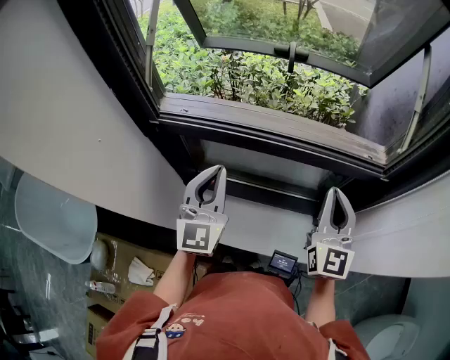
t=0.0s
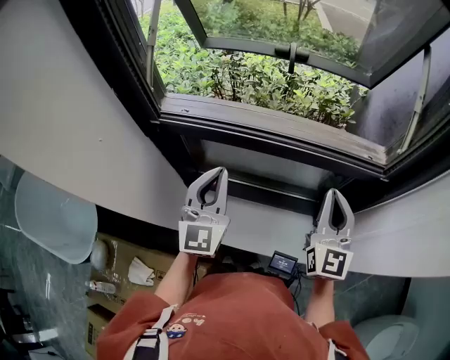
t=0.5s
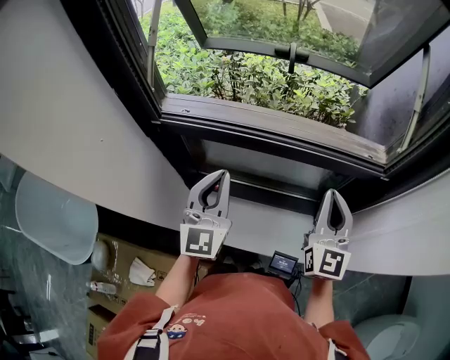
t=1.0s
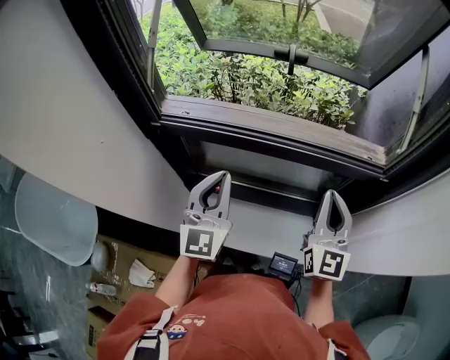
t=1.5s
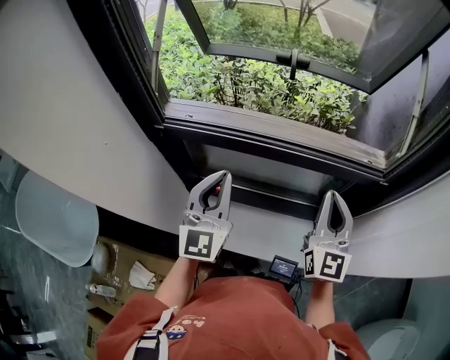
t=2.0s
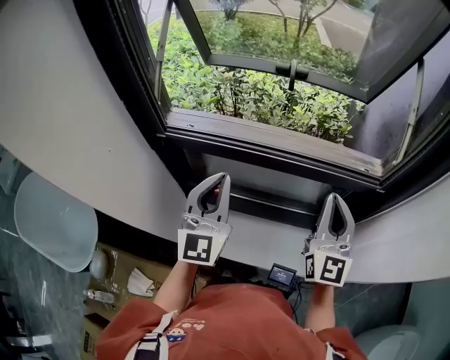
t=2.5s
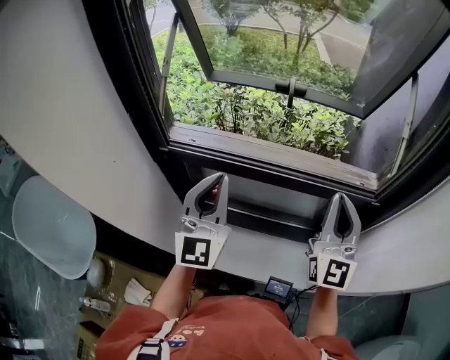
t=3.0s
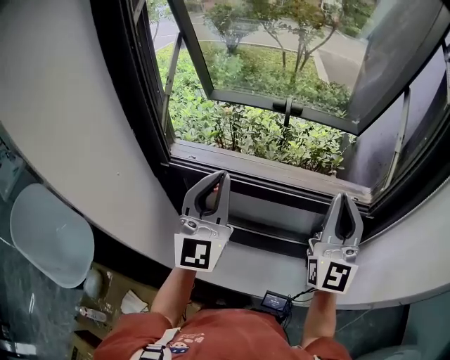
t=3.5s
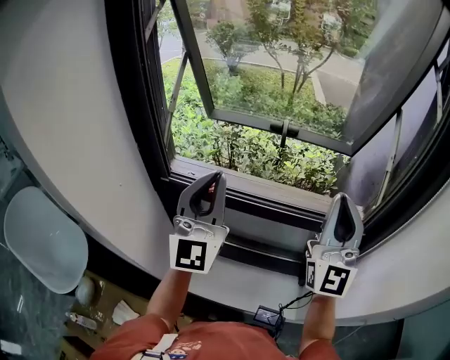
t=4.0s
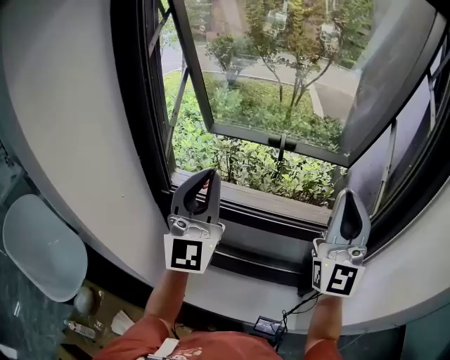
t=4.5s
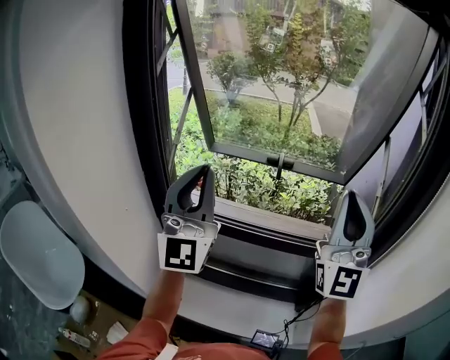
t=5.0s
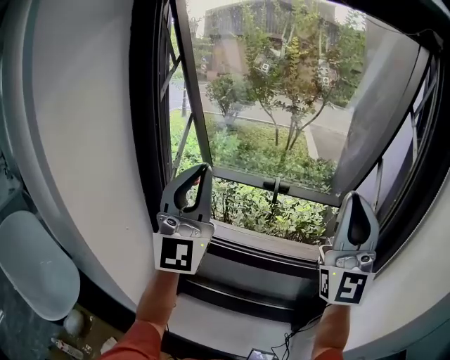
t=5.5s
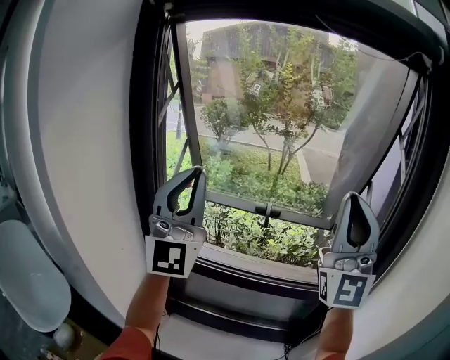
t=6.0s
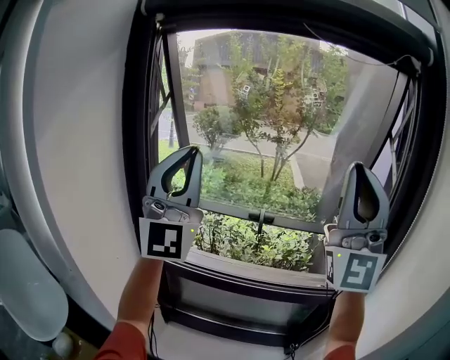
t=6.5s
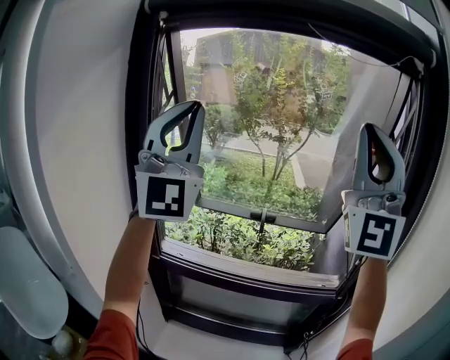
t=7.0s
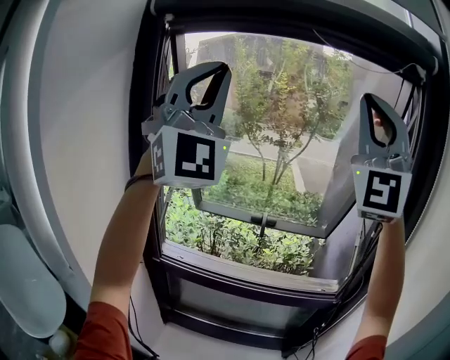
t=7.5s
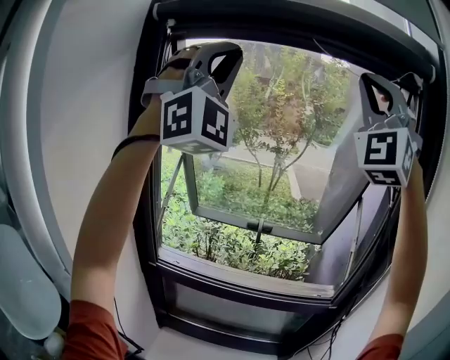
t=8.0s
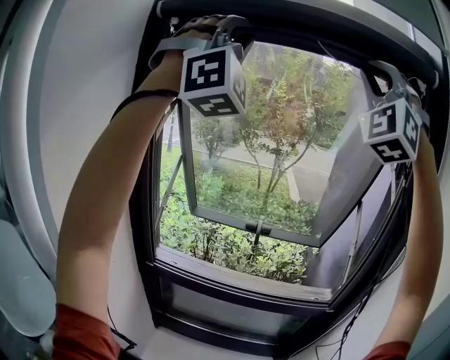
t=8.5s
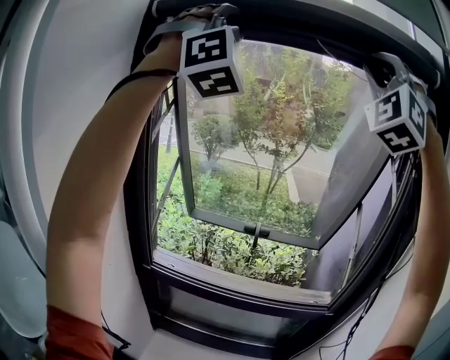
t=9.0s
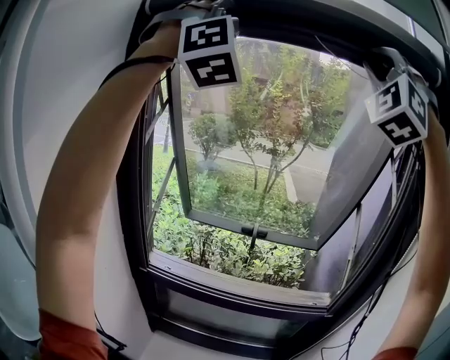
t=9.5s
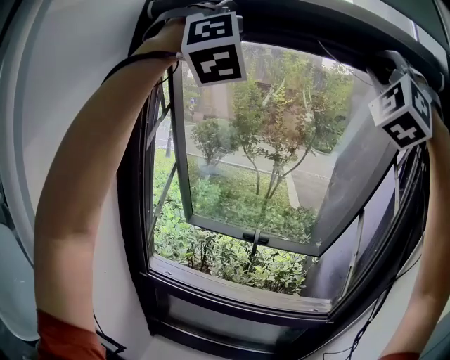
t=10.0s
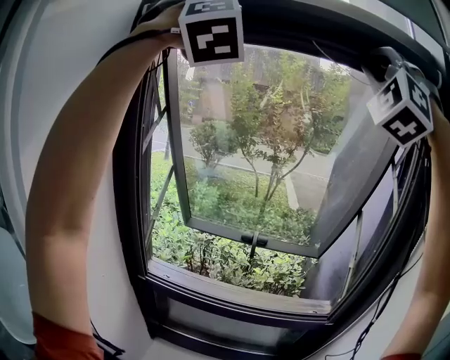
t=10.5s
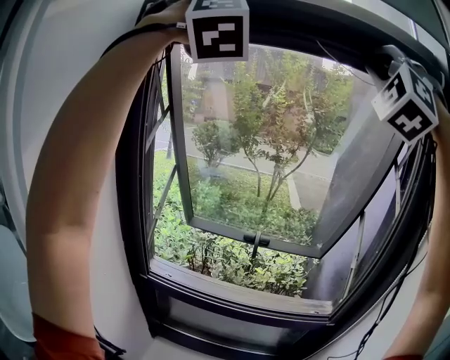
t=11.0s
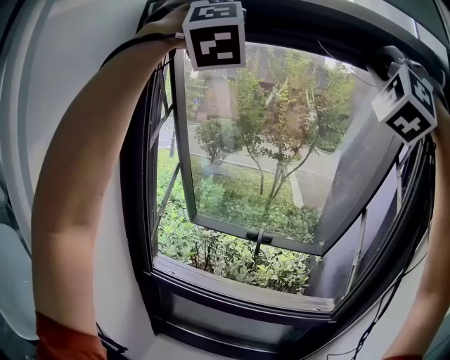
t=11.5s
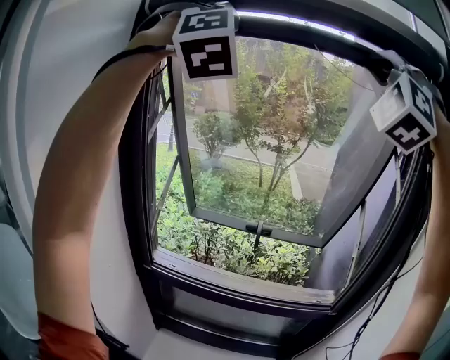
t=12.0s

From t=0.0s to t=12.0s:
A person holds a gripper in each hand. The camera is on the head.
From t=0.0s to t=2.0s: The grippers make only small movements.
From t=2.0s to t=4.0s: The grippers both shift upward by approximately 15 cm. The left gripper turns by about 20 degrees. Meanwhile the right gripper rotates about 30 degrees.
From t=4.0s to t=6.0s: Both grippers travel together upward, some 20 cm. The right gripper rotates roughly 20 degrees; the left gripper rotates roughly 20 degrees.
From t=6.0s to t=8.0s: The grippers both shift upward by approximately 25 cm. The right gripper rotates around the line of its fingers by about 50 degrees, counterclockwise from behind, while the left gripper rolls clockwise, seen from behind, by roughly 50 degrees.
From t=8.0s to t=10.0s: The left gripper travels upward and forward by approximately 10 cm, and turns by some 20 degrees. Meanwhile the right gripper goes approximately 5 cm upward, and changes its angle by about 20 degrees.
From t=10.0s to t=12.0s: The grippers move only a little.

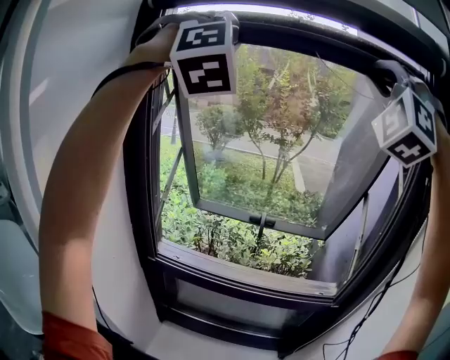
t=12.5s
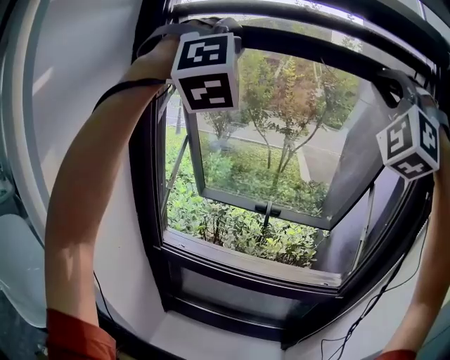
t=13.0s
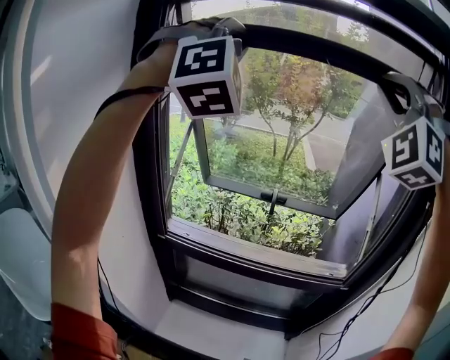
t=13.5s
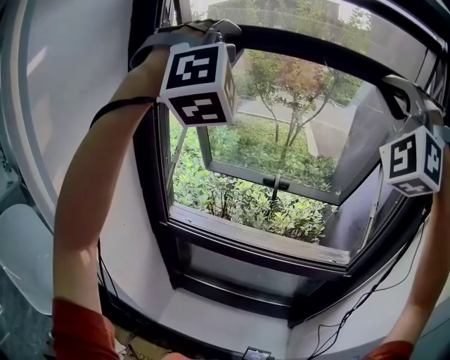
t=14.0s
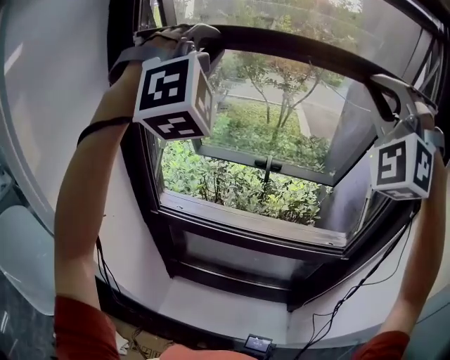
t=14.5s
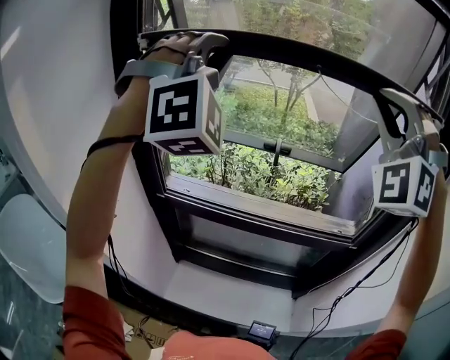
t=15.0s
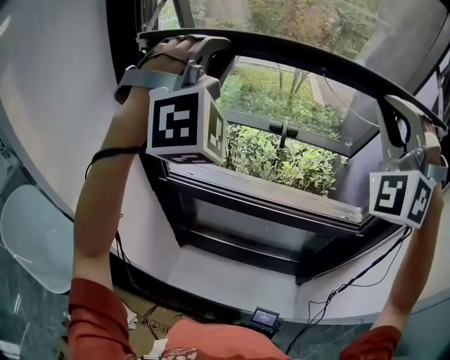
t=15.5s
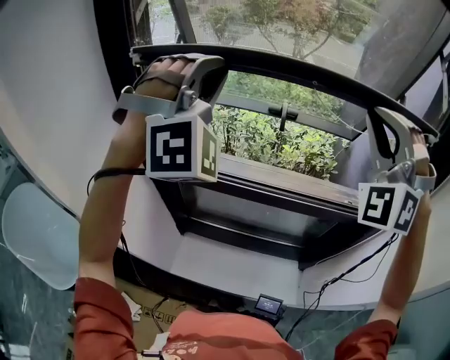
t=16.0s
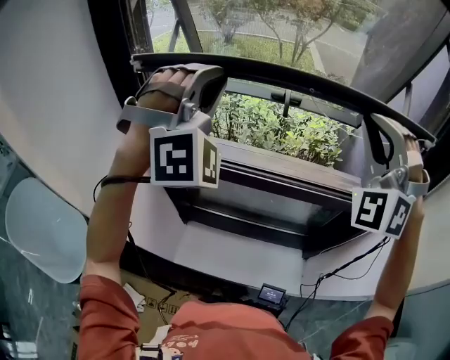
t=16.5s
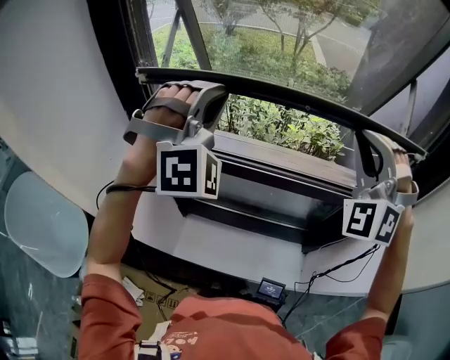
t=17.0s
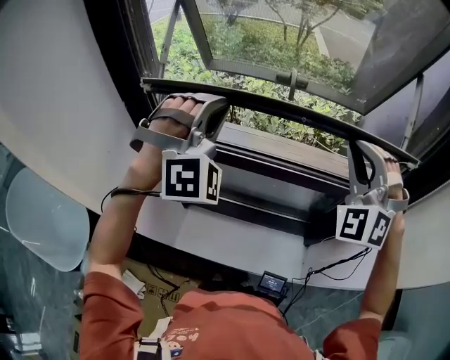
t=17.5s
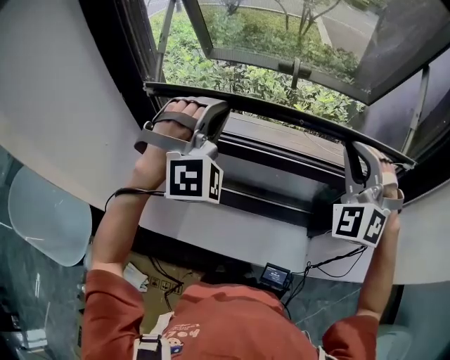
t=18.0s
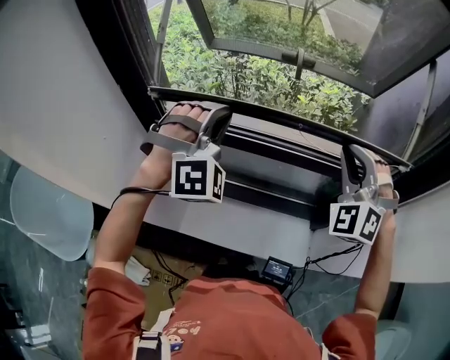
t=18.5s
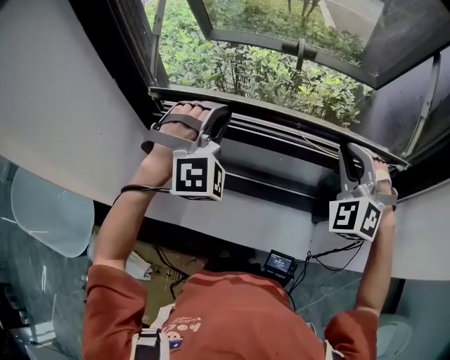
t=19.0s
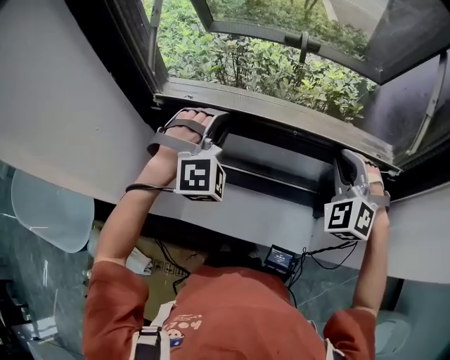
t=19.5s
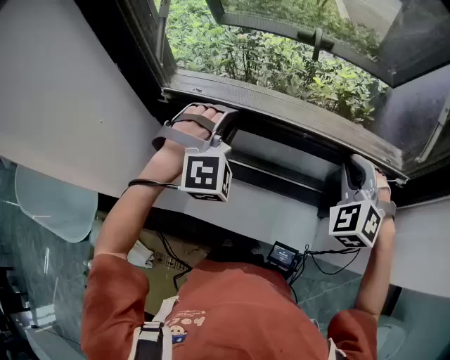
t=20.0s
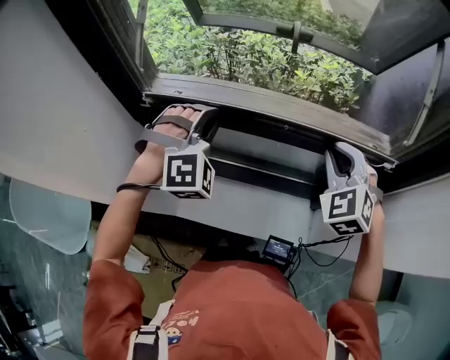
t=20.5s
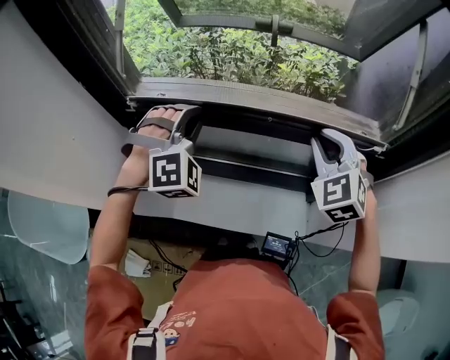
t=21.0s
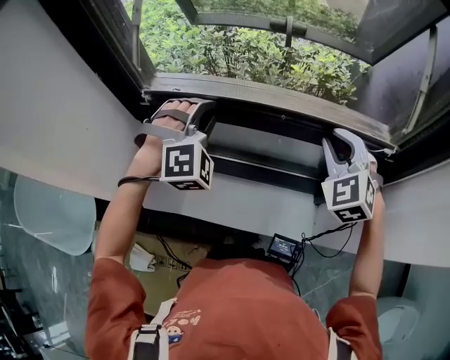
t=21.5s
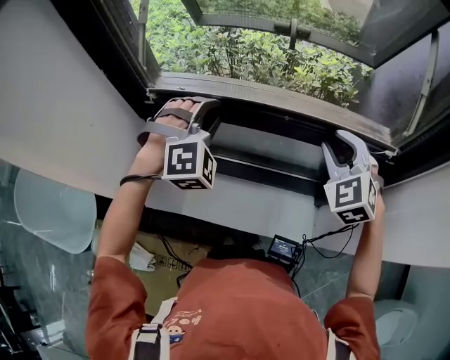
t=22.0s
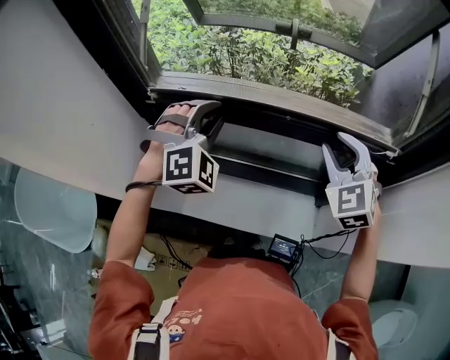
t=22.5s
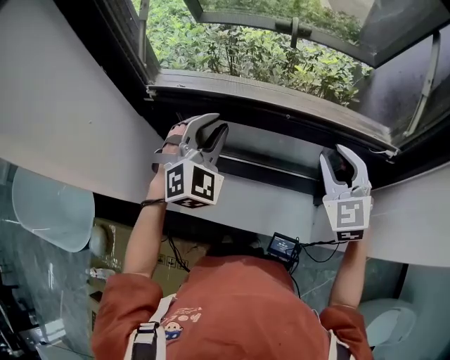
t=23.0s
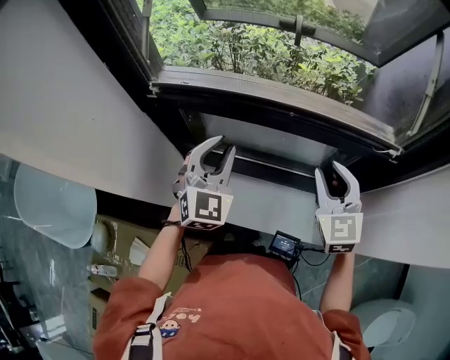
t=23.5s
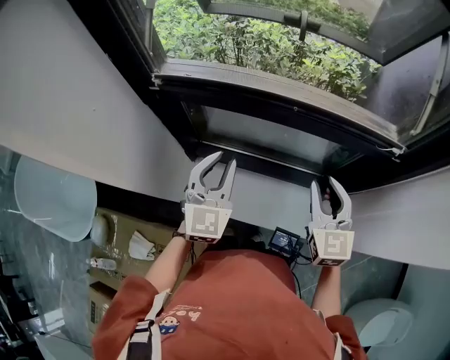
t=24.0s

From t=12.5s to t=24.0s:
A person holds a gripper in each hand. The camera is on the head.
From t=12.5s to t=14.5s: The grippers both shift downward by roughly 15 cm.
From t=14.5s to t=16.5s: Both grippers move downward, about 20 cm.
From t=16.5s to t=18.5s: Both grippers move downward, approximately 20 cm. The right gripper rotates approximately 20 degrees.
From t=18.5s to t=20.0s: The two grippers go approximately 10 cm downward.
From t=20.0s to t=22.0s: The right gripper opens.
From t=22.0s to t=24.0s: The grippers both shift backward and downward by approximately 10 cm. The right gripper swivels approximately 40 degrees, while the left gripper rolls counterclockwise, seen from behind, by some 60 degrees.

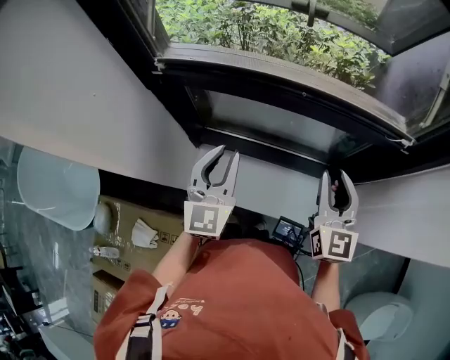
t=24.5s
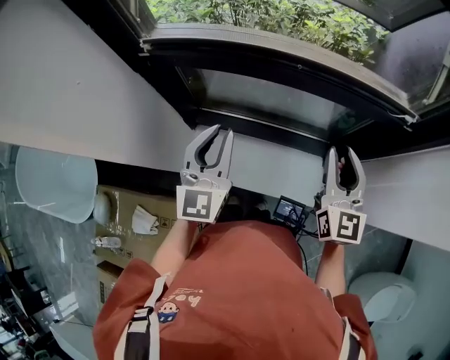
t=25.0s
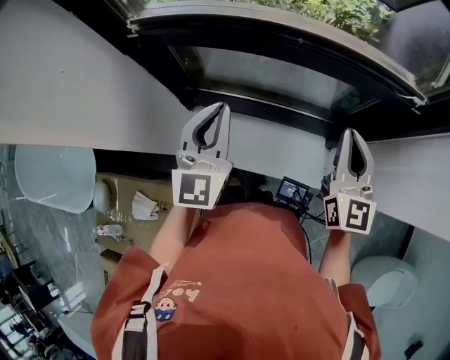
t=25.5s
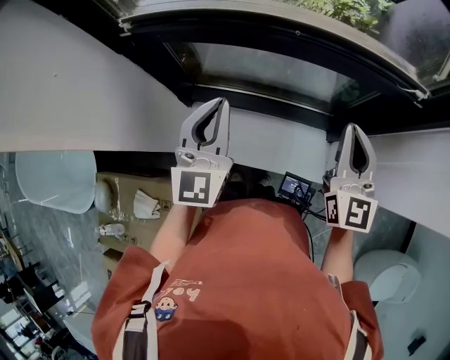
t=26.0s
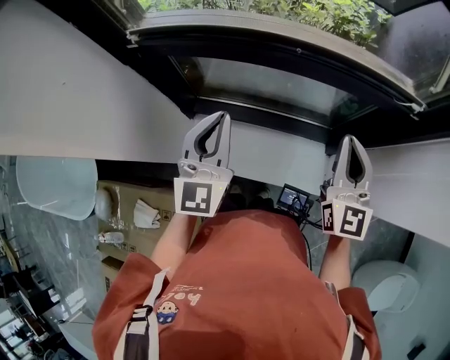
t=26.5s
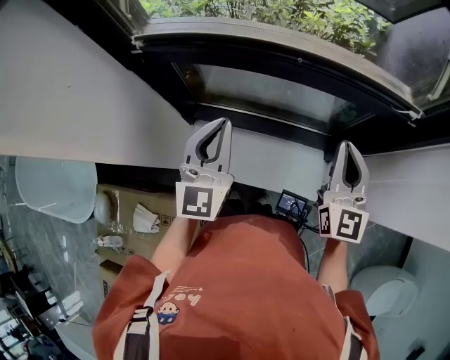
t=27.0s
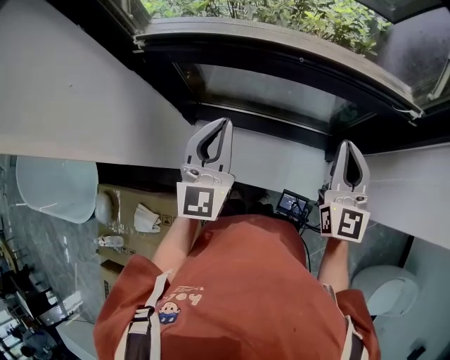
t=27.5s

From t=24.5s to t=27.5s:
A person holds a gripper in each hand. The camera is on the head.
From t=24.5s to t=26.0s: The left gripper closes up. The right gripper closes its fingers.
From t=26.0s to t=27.5s: The two grippers keep their place.
